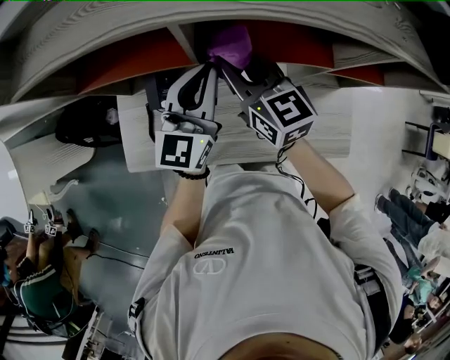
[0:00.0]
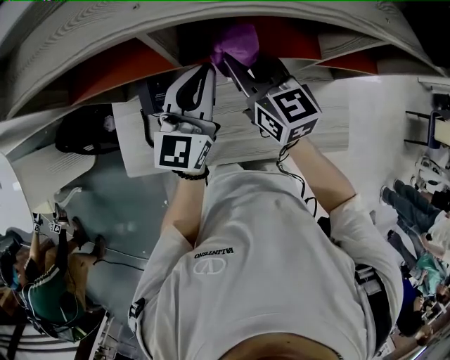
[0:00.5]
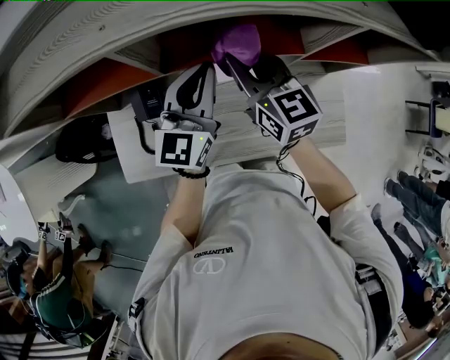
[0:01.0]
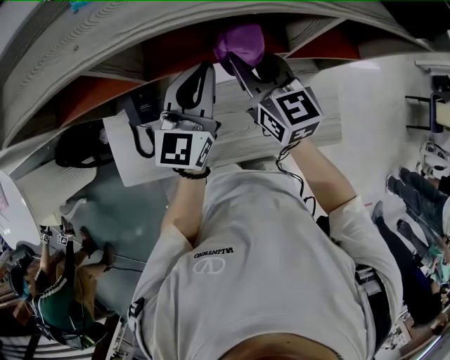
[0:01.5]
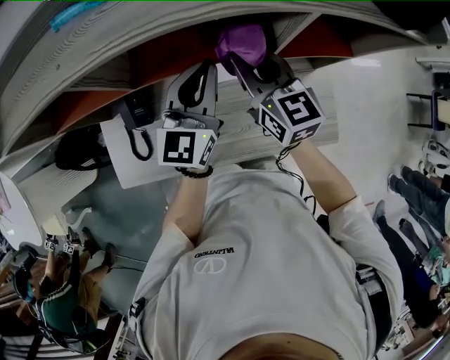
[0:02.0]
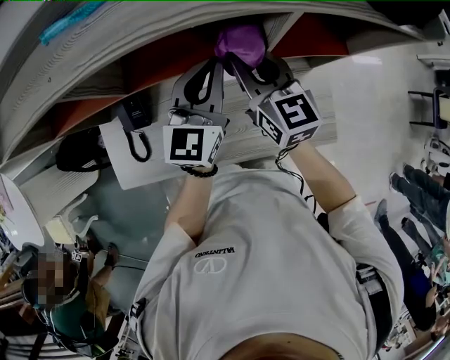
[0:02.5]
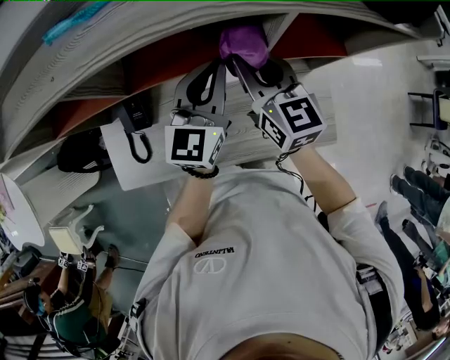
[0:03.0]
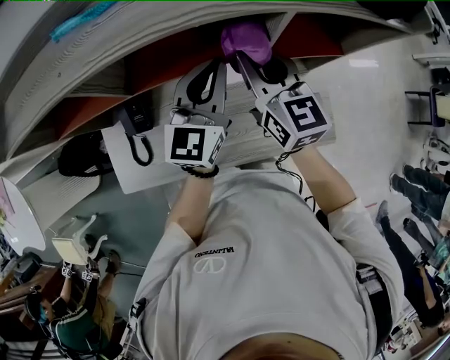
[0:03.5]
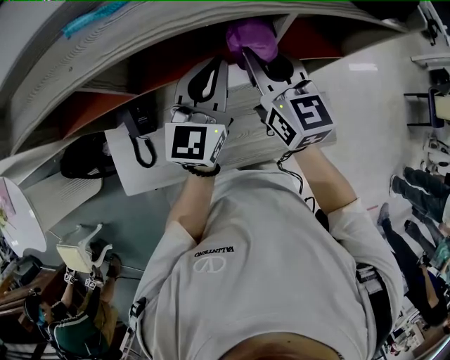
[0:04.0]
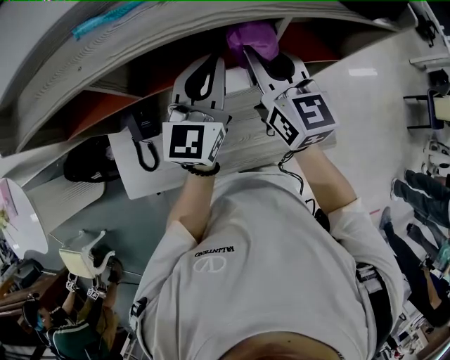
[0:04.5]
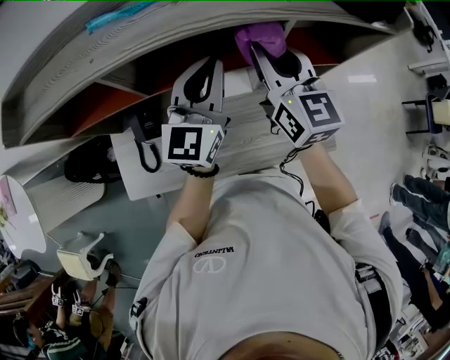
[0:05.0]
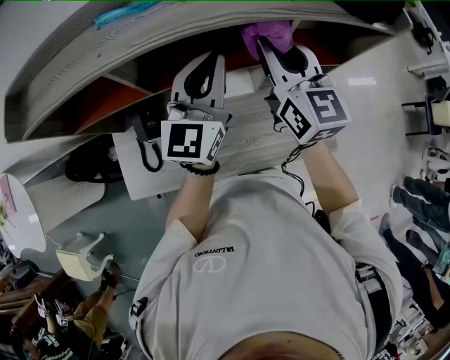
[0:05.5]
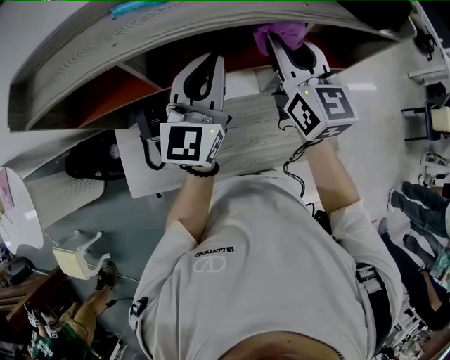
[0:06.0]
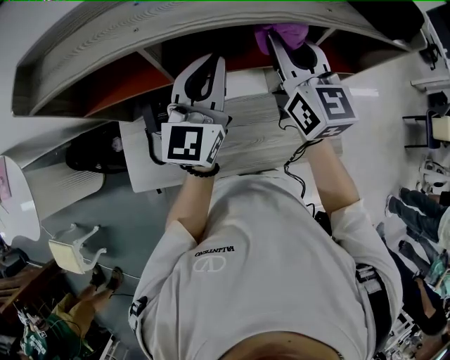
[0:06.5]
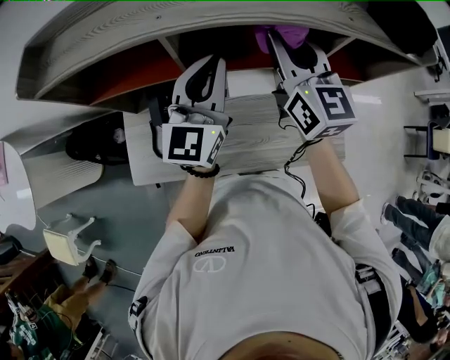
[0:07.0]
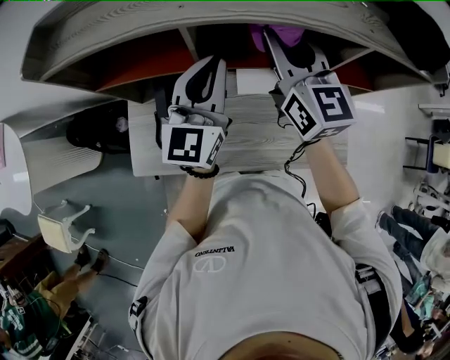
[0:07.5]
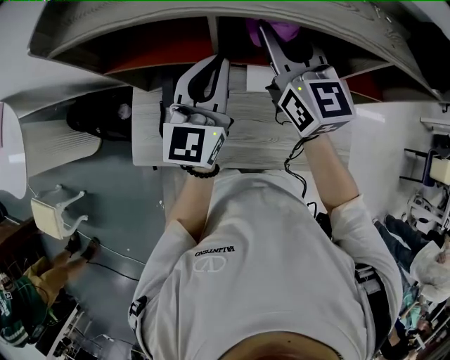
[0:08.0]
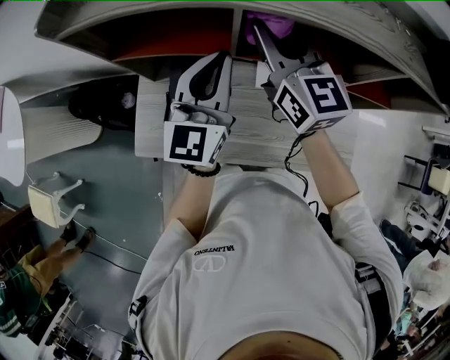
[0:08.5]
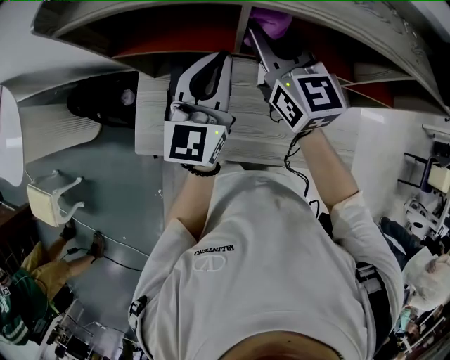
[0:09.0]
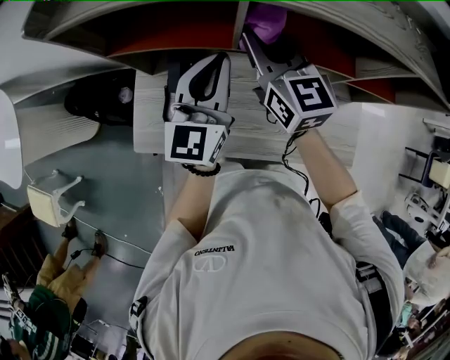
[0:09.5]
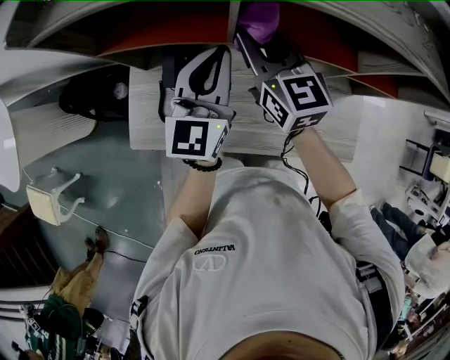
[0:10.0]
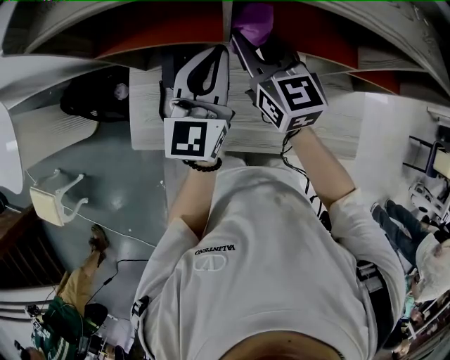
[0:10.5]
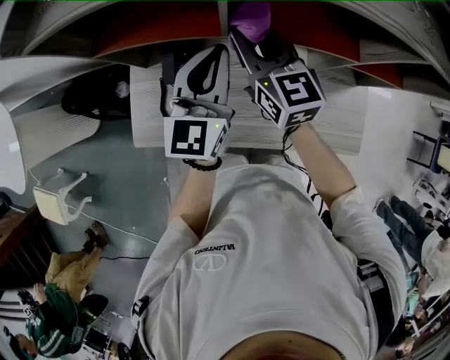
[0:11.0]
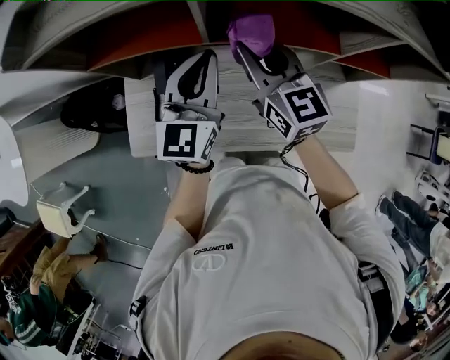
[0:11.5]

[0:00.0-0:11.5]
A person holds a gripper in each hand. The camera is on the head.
0:00.0 to 0:02.0: The two grippers go approximately 15 cm to the right.
0:02.0 to 0:04.0: The right gripper moves upward, about 5 cm; the left gripper moves approximately 5 cm.
0:04.0 to 0:06.0: The right gripper moves upward, roughly 10 cm. Meanwhile the left gripper goes some 10 cm upward and to the left.
0:06.0 to 0:07.5: The grippers both shift to the left by about 10 cm.
0:07.5 to 0:09.5: The left gripper shifts about 10 cm to the left and downward; the right gripper moves to the left and downward, roughly 15 cm.
0:09.5 to 0:11.5: The right gripper ends up about 5 cm from where it was.

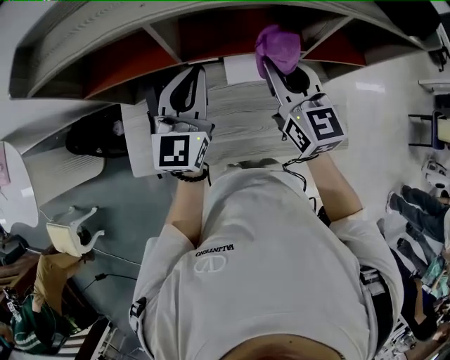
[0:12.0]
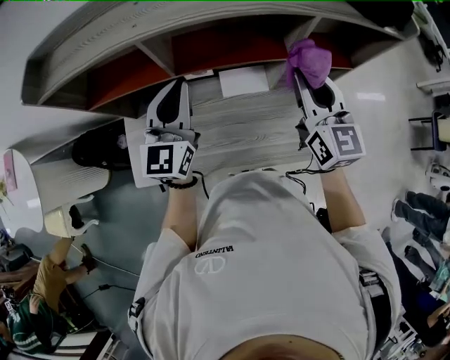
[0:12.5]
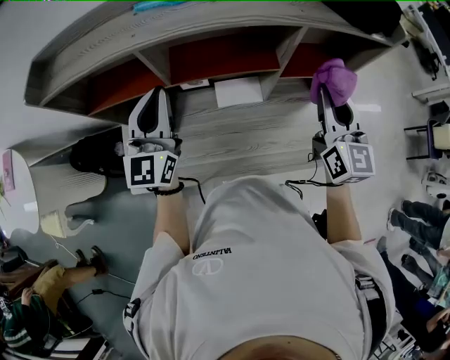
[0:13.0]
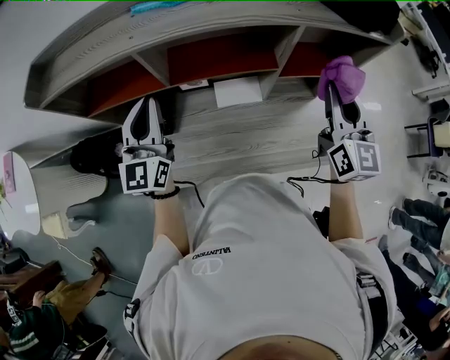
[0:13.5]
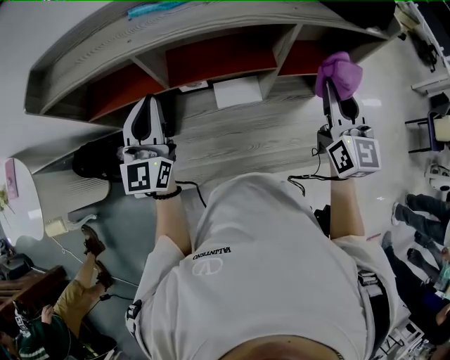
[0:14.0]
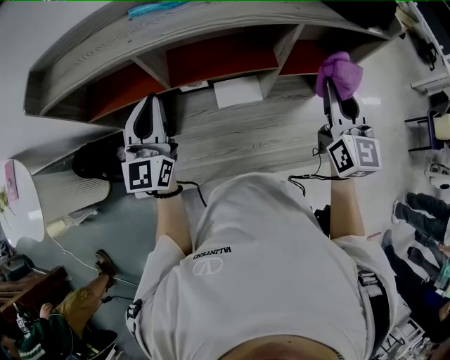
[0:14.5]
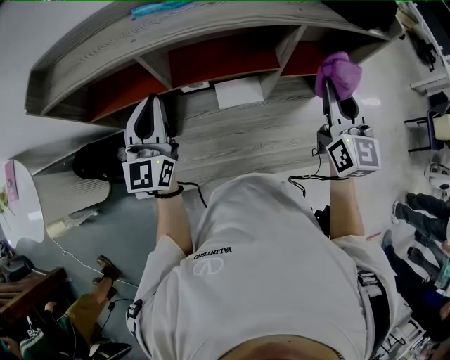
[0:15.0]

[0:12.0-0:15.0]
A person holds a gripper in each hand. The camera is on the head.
0:12.0 to 0:13.5: The left gripper is displaced to the left by about 5 cm. Meanwhile the right gripper goes approximately 20 cm to the right.
0:13.5 to 0:15.0: The two grippers keep their place.

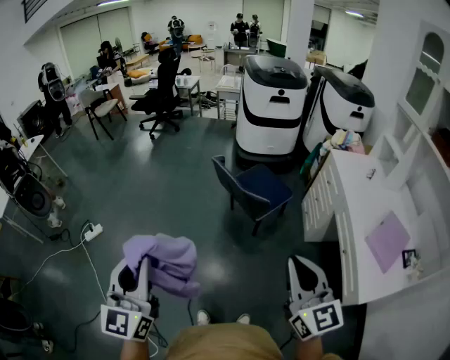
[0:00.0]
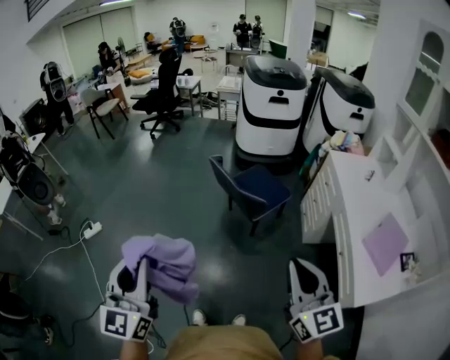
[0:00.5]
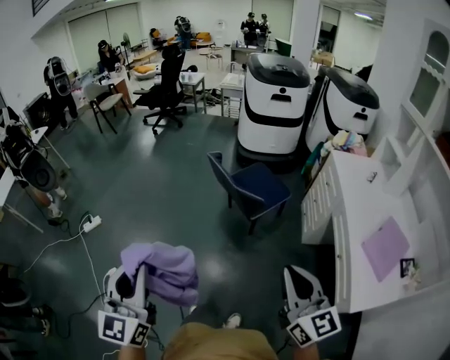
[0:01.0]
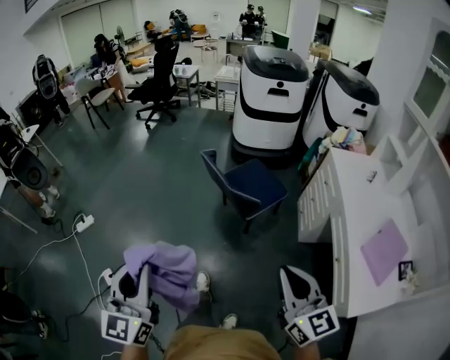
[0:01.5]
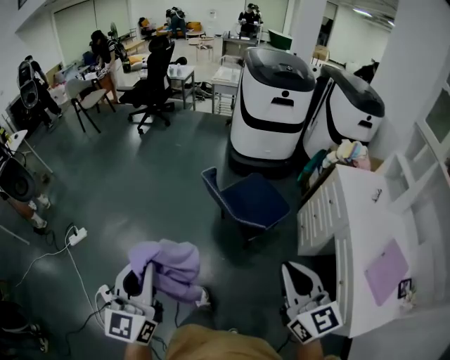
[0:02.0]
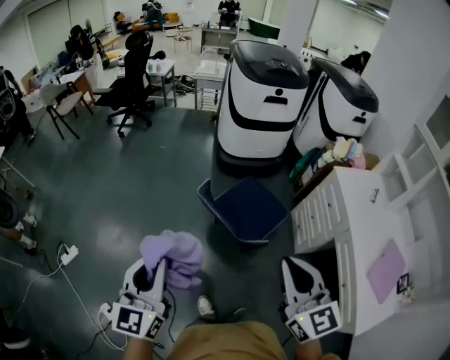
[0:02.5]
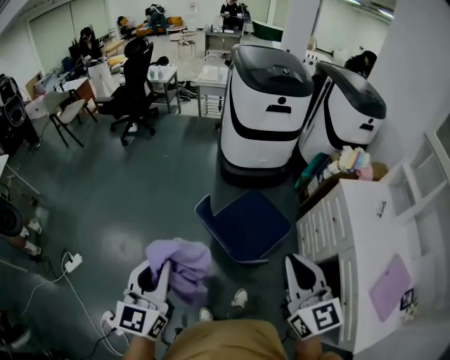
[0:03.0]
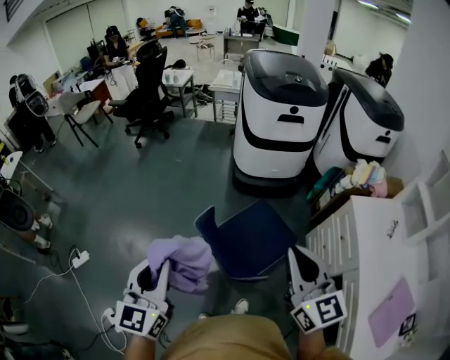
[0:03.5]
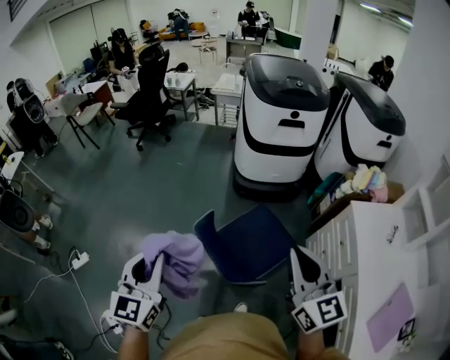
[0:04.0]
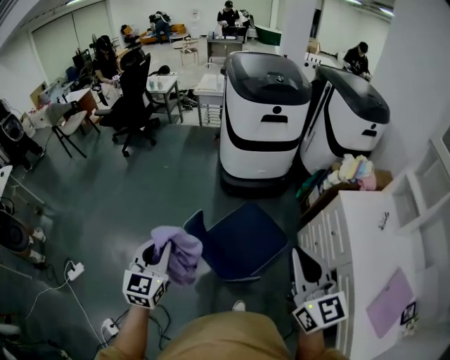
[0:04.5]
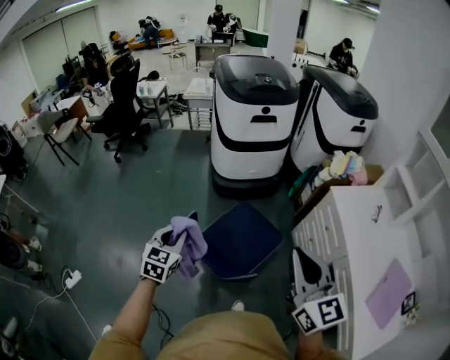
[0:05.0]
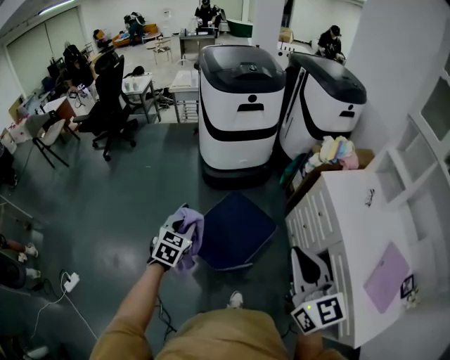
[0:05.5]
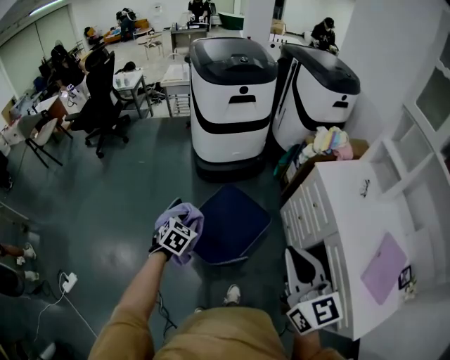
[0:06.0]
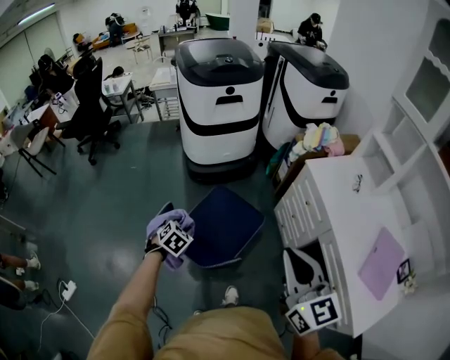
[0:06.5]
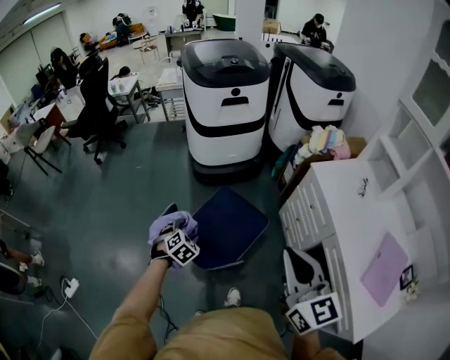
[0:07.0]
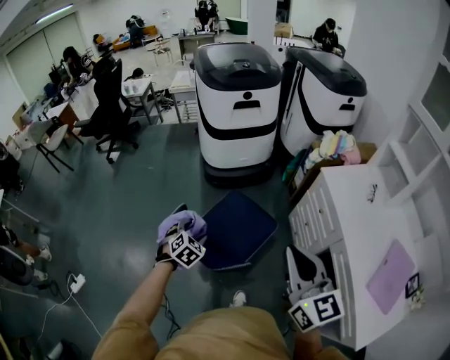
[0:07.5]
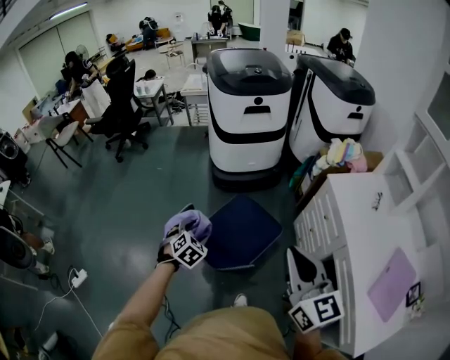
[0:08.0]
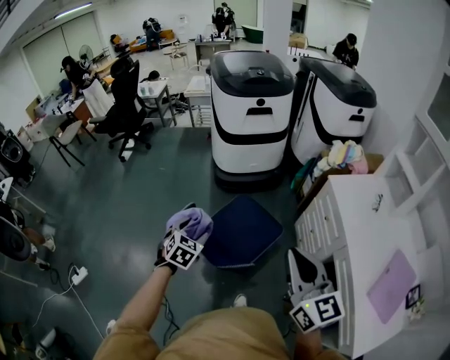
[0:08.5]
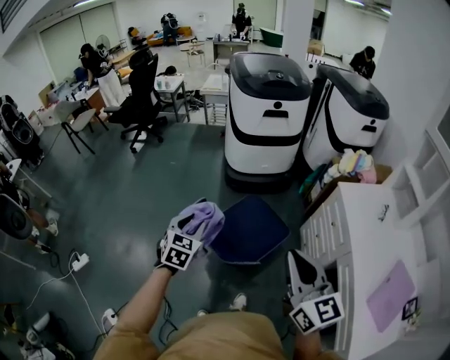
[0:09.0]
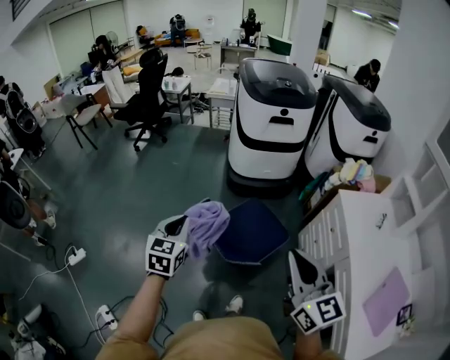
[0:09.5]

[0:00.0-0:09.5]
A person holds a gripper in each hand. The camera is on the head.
0:00.0 to 0:02.0: Both grippers move forward, about 20 cm.
0:02.0 to 0:04.0: Both grippers move forward, some 35 cm.
0:04.0 to 0:05.5: The left gripper is displaced downward, forward and to the right by some 25 cm, and changes its angle by approximately 40 degrees; the right gripper travels backward and to the right by about 10 cm.
0:05.5 to 0:07.5: The left gripper goes about 10 cm downward and to the right, swivels roughly 30 degrees, and opens its fingers.
0:07.5 to 0:09.5: The right gripper moves to the left and backward, some 10 cm, while the left gripper travels upward, to the left and backward by roughly 25 cm, turns by about 50 degrees, and closes its fingers.

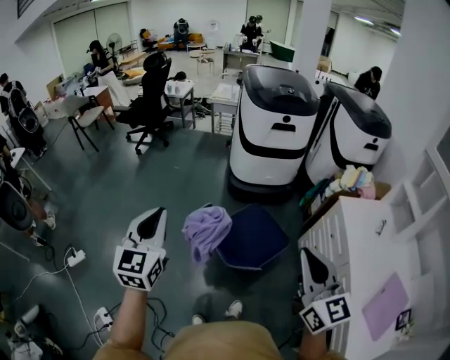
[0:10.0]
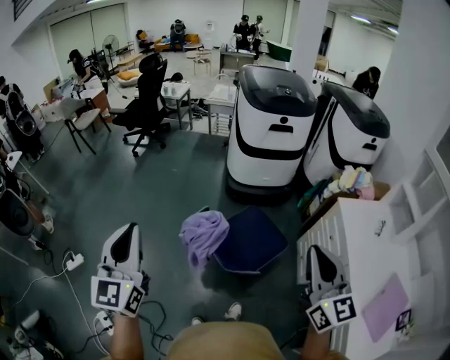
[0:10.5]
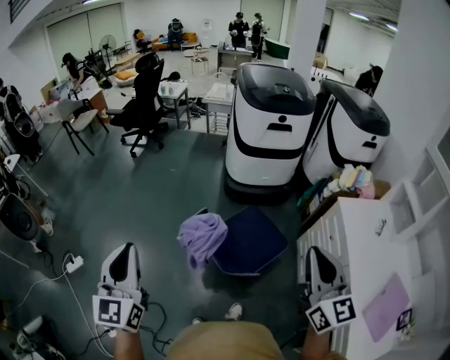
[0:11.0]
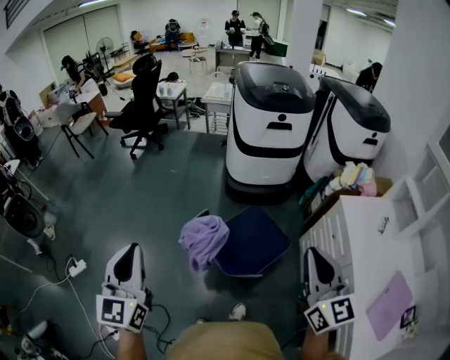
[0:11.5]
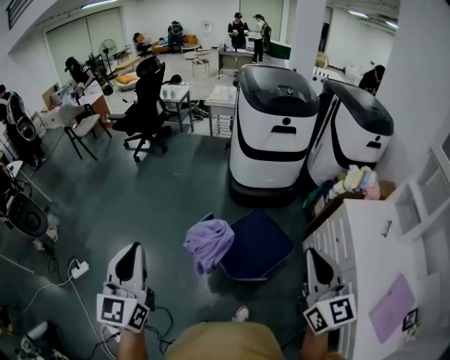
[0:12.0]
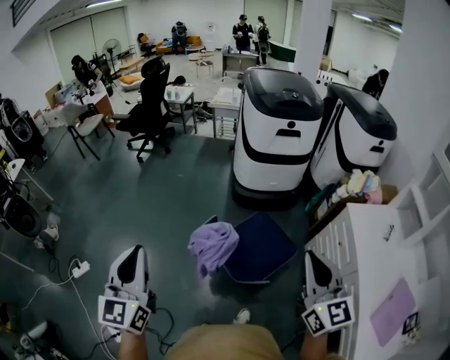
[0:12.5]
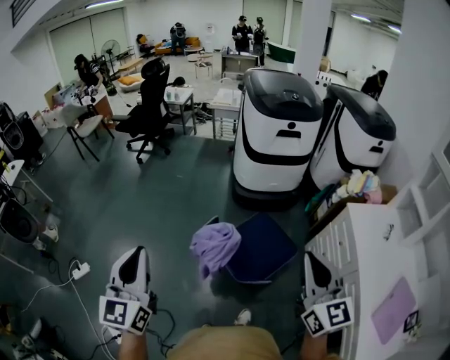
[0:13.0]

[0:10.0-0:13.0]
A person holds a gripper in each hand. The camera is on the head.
0:10.0 to 0:11.5: The left gripper ends up approximately 5 cm from where it was. Meanwhile the right gripper changes place by some 5 cm.
0:11.5 to 0:13.0: The right gripper travels to the left by roughly 5 cm.
